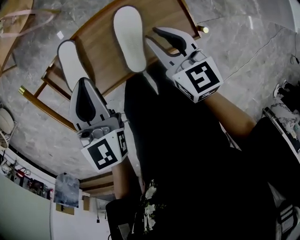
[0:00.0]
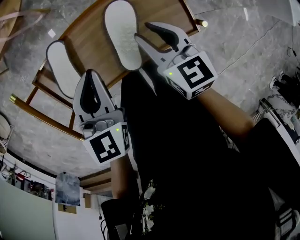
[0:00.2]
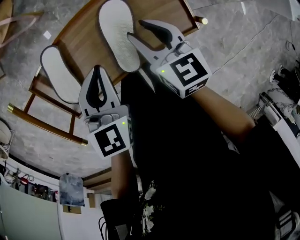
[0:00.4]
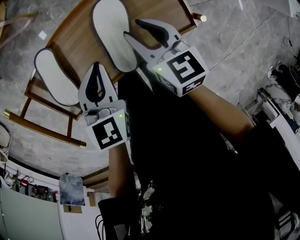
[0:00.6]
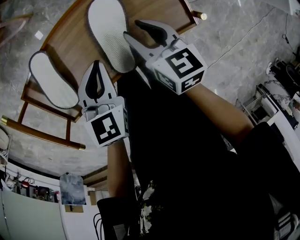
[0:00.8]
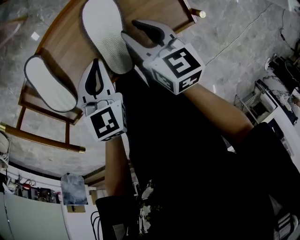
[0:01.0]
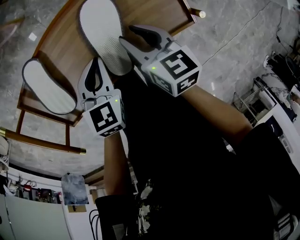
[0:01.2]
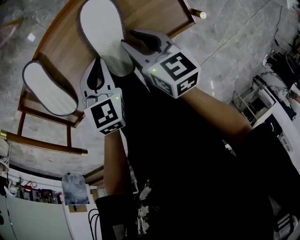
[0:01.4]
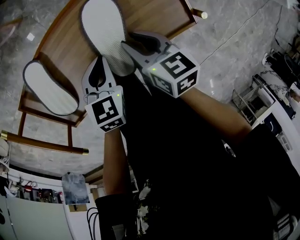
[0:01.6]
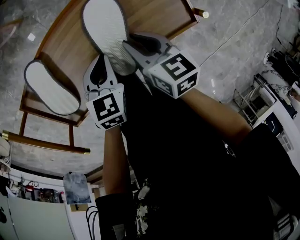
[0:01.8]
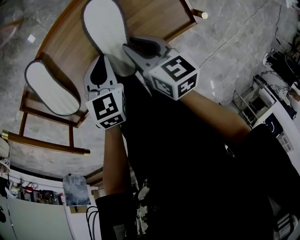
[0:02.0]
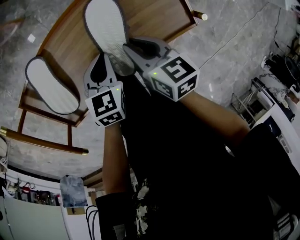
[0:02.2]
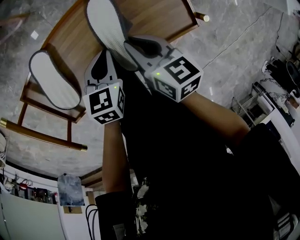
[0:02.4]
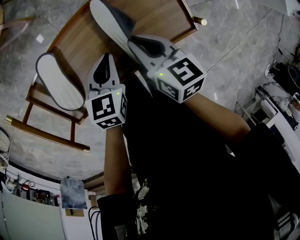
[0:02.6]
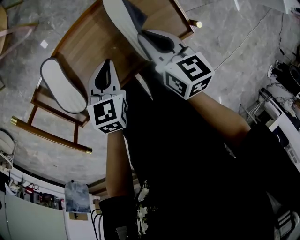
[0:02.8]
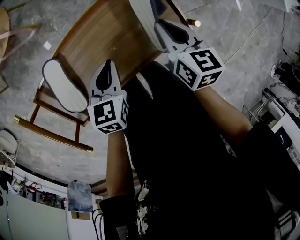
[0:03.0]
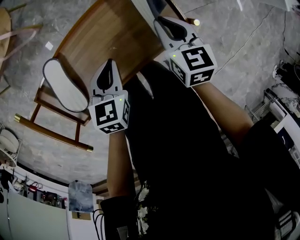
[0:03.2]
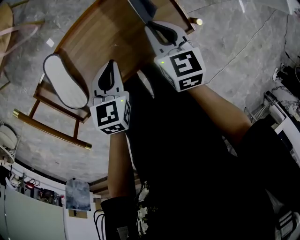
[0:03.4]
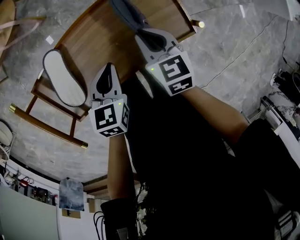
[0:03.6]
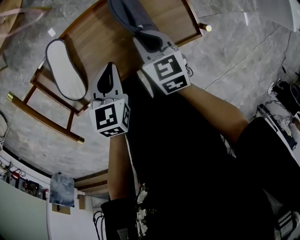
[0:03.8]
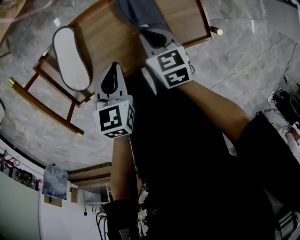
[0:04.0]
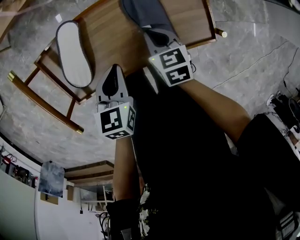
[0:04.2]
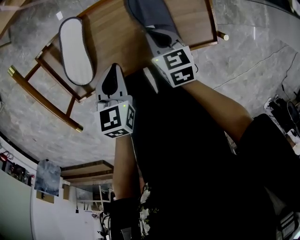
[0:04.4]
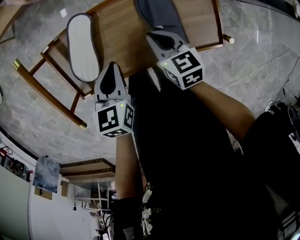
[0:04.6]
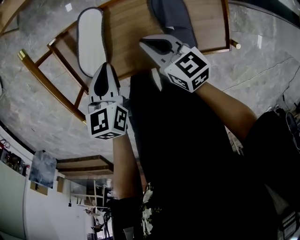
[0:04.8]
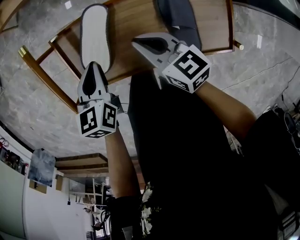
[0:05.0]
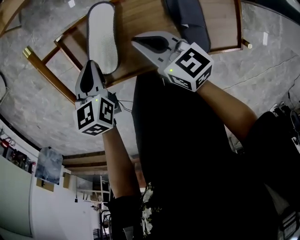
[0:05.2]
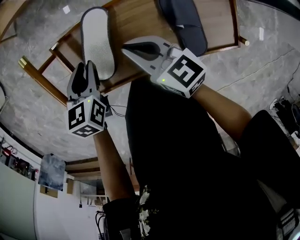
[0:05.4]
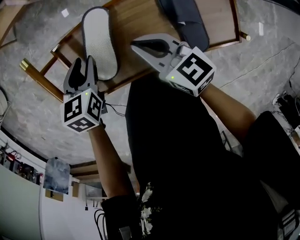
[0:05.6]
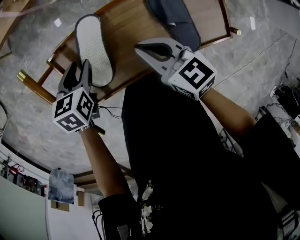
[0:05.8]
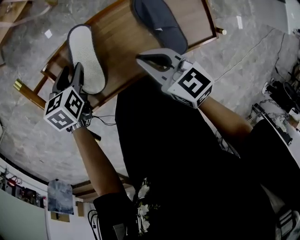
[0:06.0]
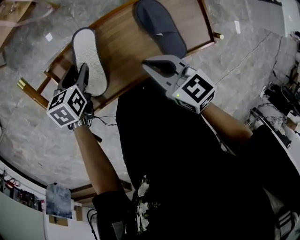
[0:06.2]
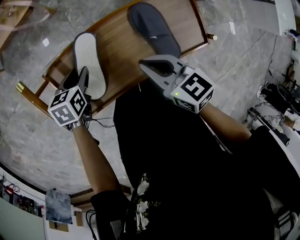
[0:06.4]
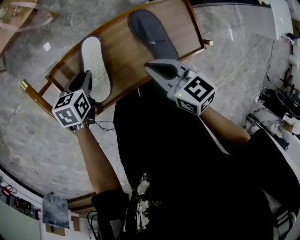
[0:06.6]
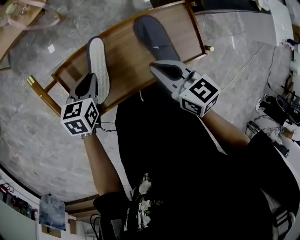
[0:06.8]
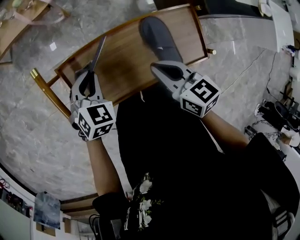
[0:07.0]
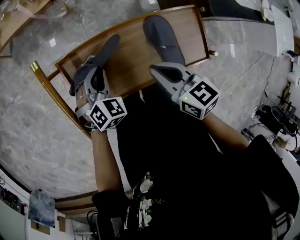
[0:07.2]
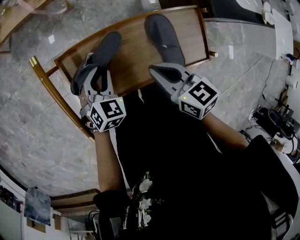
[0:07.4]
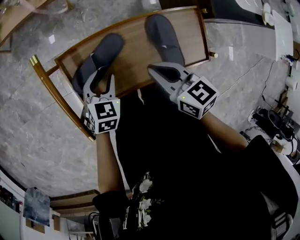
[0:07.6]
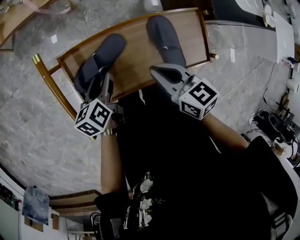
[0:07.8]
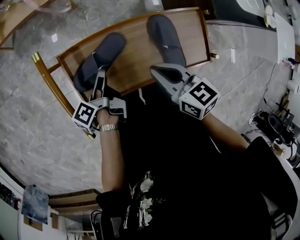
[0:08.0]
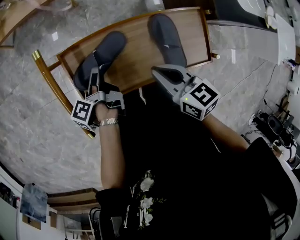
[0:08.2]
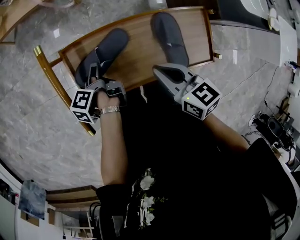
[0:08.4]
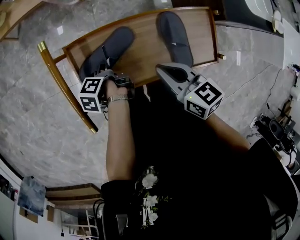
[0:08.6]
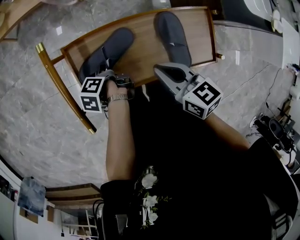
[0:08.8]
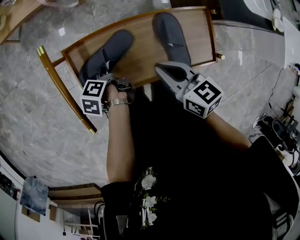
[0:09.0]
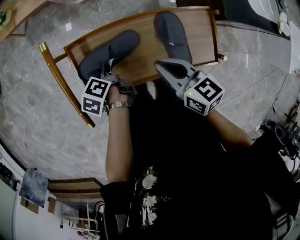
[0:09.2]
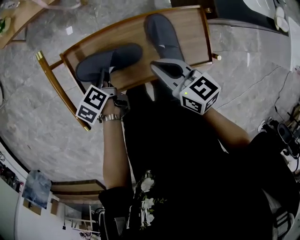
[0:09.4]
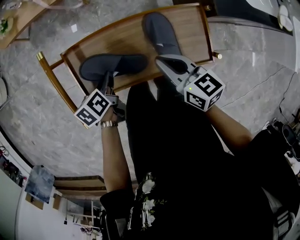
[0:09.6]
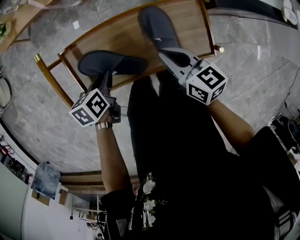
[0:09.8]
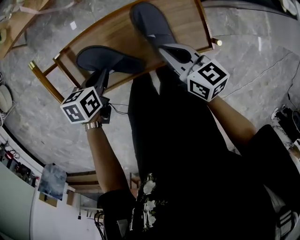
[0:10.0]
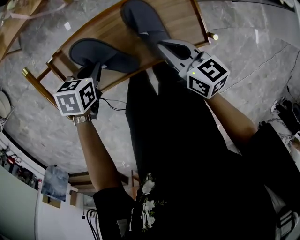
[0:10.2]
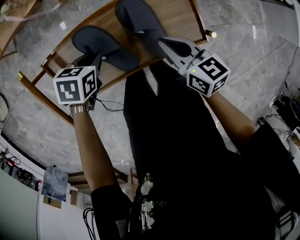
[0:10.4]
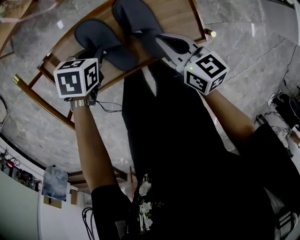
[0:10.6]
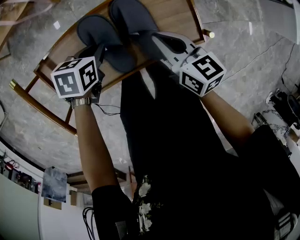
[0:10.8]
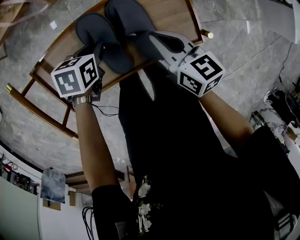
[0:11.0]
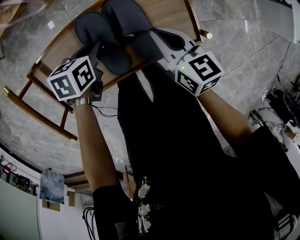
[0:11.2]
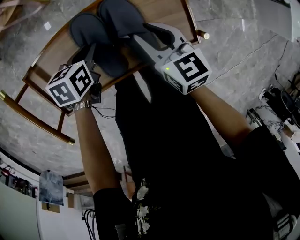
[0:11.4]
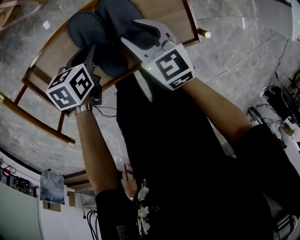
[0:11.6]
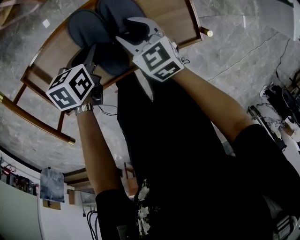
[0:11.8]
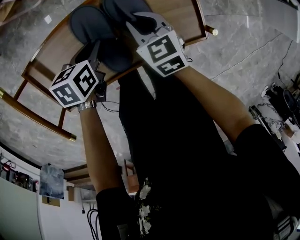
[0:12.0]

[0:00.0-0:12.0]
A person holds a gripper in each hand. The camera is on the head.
0:00.0 to 0:01.6: The left gripper shifts approximately 20 cm downward, and rotates some 30 degrees; the right gripper moves downward, approximately 15 cm, and swivels some 30 degrees.
0:01.6 to 0:03.0: The right gripper is displaced to the right, upward and forward by some 10 cm, and closes its fingers. Meanwhile the left gripper moves upward, about 5 cm.
0:03.0 to 0:04.4: The left gripper heads to the left and backward, covering some 10 cm, and swivels roughly 20 degrees, while the right gripper goes approximately 15 cm to the left and downward, and turns by about 30 degrees.
0:04.4 to 0:06.0: The right gripper goes roughly 15 cm to the left and upward, while the left gripper moves forward, to the left and downward, about 20 cm, and opens.
0:06.0 to 0:07.6: The left gripper travels backward and to the right by some 10 cm, moves roughly 5 cm upward and comes back, rotates roughly 20 degrees, and closes and opens again.
0:07.6 to 0:09.0: The left gripper heads downward and to the left, covering some 10 cm, rolls counterclockwise, seen from behind, by some 100 degrees, and closes its fingers.
0:09.0 to 0:10.4: The left gripper ends up some 15 cm from where it was, and rotates around the line of its fingers by about 90 degrees, clockwise from behind, while the right gripper shifts by roughly 15 cm.
0:10.4 to 0:12.0: The left gripper ends up some 5 cm from where it was, and swivels some 20 degrees. The right gripper goes some 10 cm downward and forward, changes its angle by roughly 30 degrees, and opens, then closes once more.

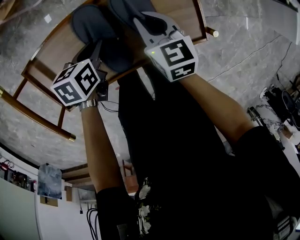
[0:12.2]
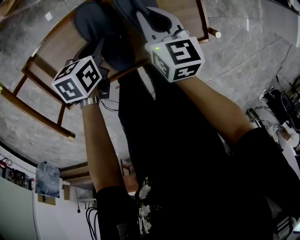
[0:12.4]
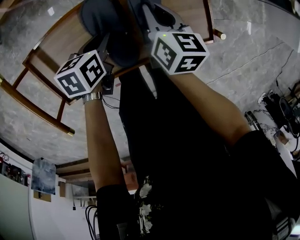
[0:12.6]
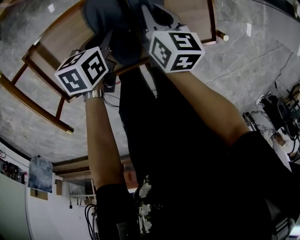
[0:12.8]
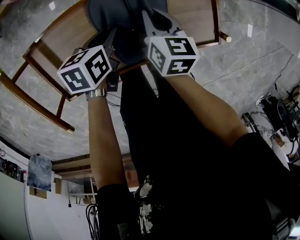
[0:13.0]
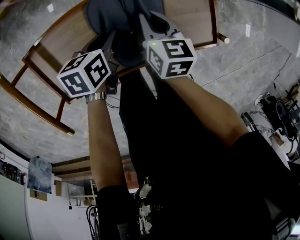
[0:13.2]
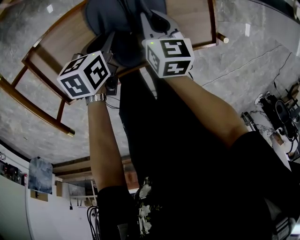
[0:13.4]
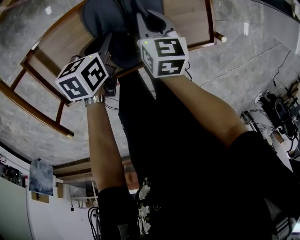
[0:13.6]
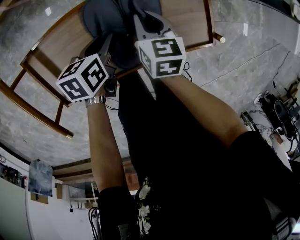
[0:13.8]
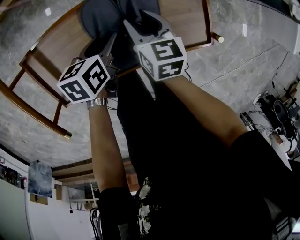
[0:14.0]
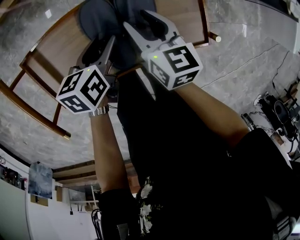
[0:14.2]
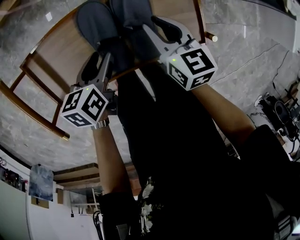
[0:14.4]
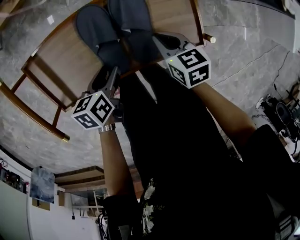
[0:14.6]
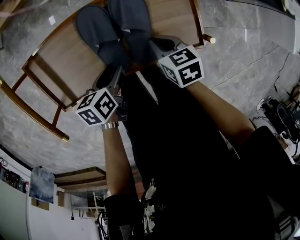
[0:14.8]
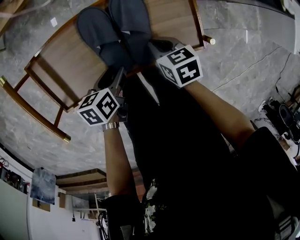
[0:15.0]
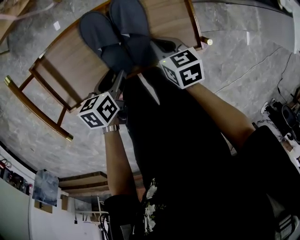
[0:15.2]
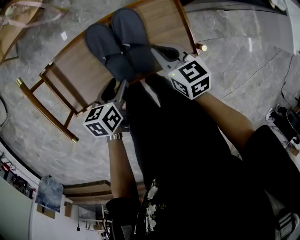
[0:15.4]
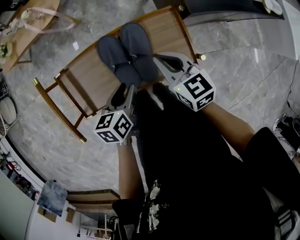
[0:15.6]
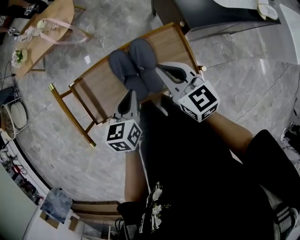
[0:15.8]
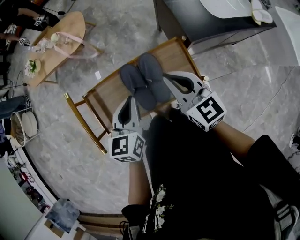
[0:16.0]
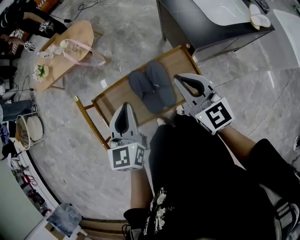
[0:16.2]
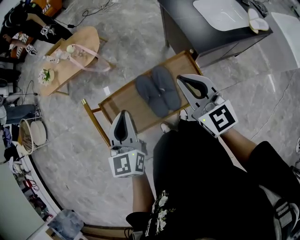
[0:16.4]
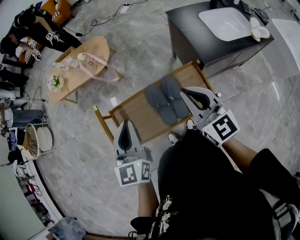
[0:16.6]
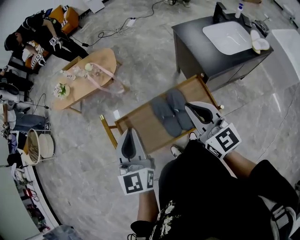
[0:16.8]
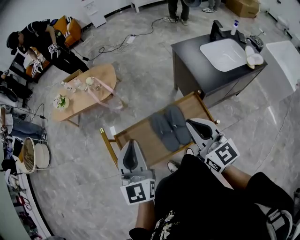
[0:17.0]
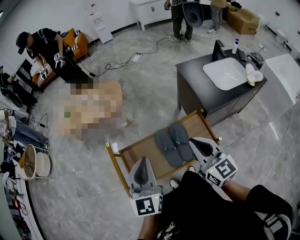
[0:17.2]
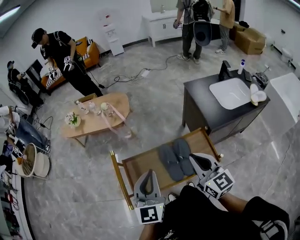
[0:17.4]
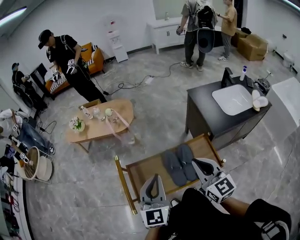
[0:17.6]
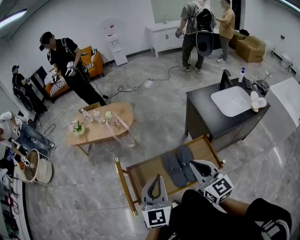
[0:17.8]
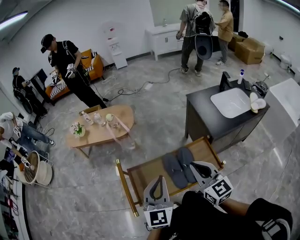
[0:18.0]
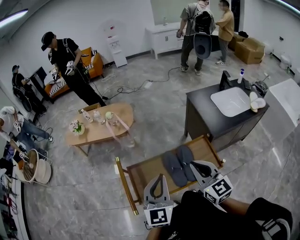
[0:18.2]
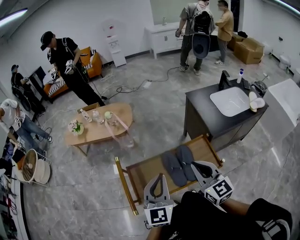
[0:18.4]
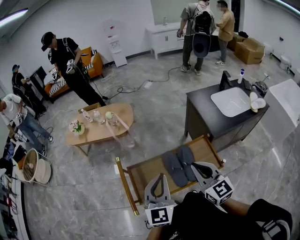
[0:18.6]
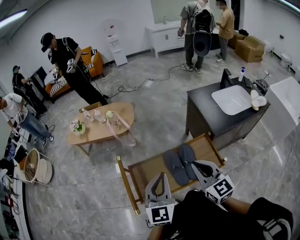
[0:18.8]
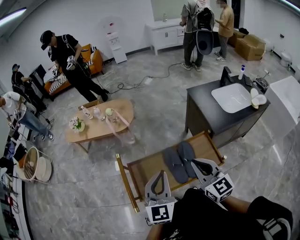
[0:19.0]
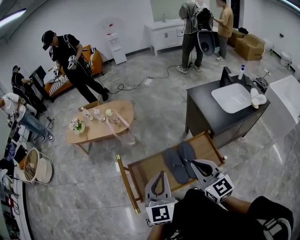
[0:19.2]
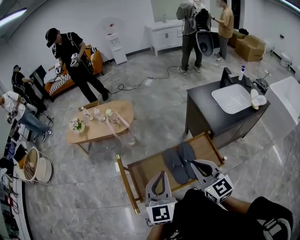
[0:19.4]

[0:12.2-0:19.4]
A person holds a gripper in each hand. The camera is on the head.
0:13.6 to 0:15.0: The right gripper moves backward and to the right, roughly 10 cm, rotates about 30 degrees, and opens, then closes once more. The left gripper goes some 10 cm backward, and opens up.
0:15.0 to 0:16.6: Both grippers travel together upward, about 35 cm. The right gripper tips its fingers upward by approximately 50 degrees, while the left gripper tilts its fingers approximately 40 degrees upward, and closes.
0:16.6 to 0:18.0: The right gripper goes approximately 5 cm to the left.
0:18.0 to 0:19.4: The grippers stay close to where they were, moving slightly.

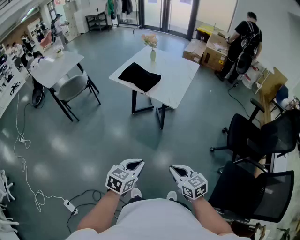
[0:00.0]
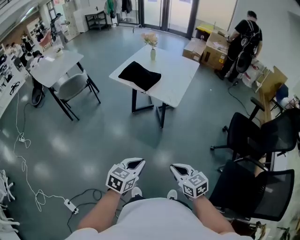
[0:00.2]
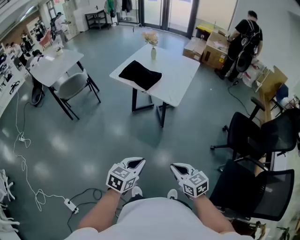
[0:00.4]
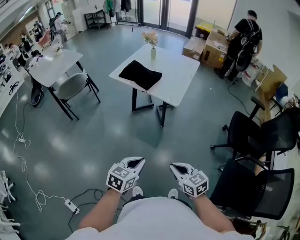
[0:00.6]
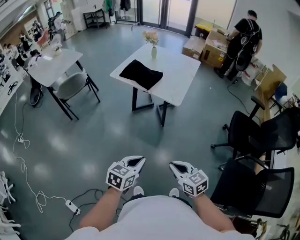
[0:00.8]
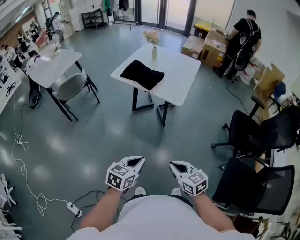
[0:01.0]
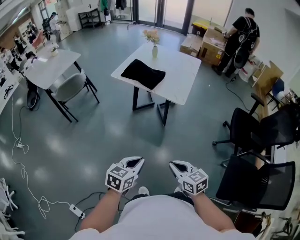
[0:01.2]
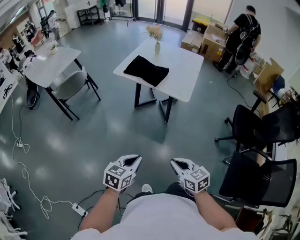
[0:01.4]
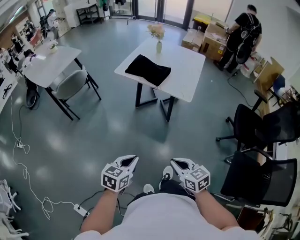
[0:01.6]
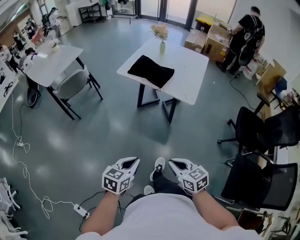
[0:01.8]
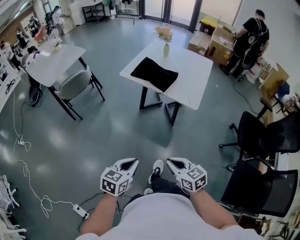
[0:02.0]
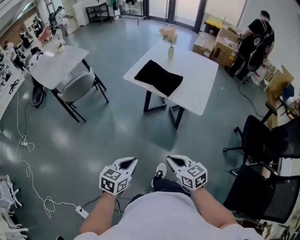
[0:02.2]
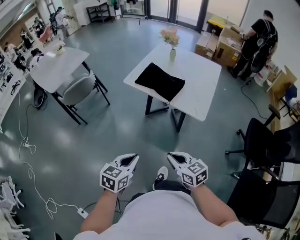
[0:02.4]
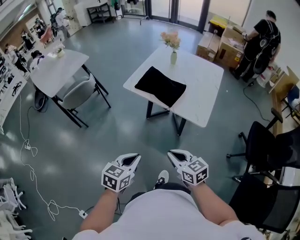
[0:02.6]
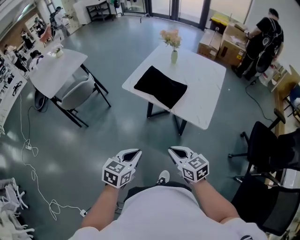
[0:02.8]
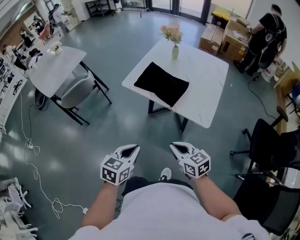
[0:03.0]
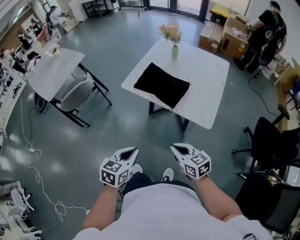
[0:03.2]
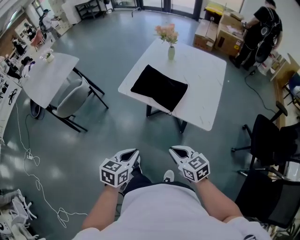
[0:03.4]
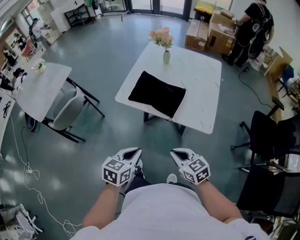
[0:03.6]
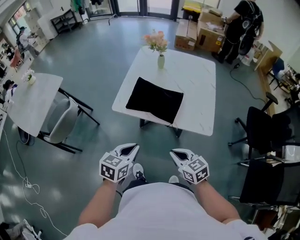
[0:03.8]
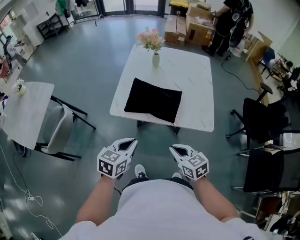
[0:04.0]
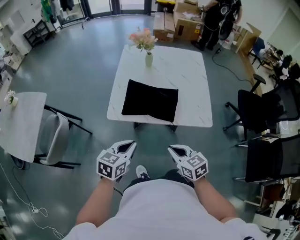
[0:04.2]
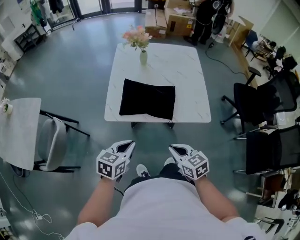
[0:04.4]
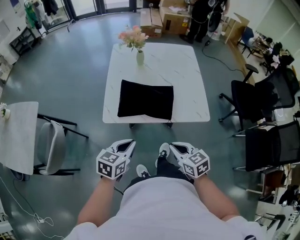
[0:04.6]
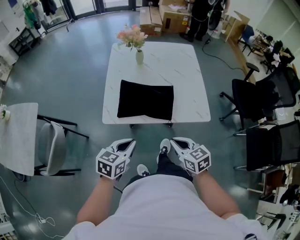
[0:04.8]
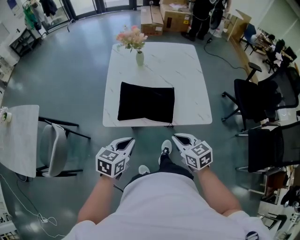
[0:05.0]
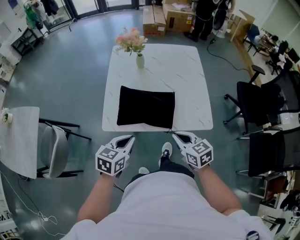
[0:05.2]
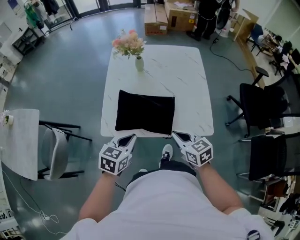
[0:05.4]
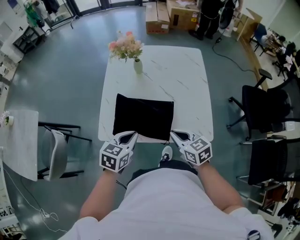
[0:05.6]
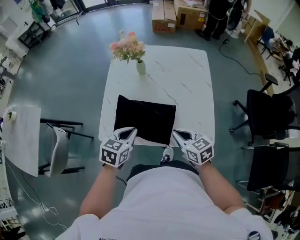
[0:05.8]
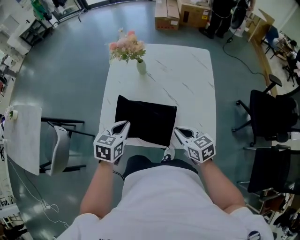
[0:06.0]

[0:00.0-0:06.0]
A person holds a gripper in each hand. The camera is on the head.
0:00.0 to 0:01.6: The two grippers go approximately 15 cm to the left.
0:01.6 to 0:03.0: Both grippers move forward, approximately 30 cm.
0:03.0 to 0:04.4: The left gripper moves some 25 cm, and rotates approximately 30 degrees. Meanwhile the right gripper changes place by roughly 15 cm, and turns by about 30 degrees.
0:04.4 to 0:06.0: The two grippers go some 25 cm forward.
